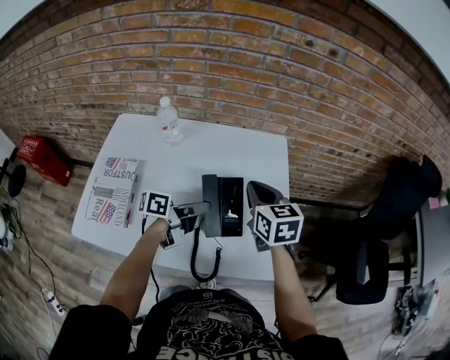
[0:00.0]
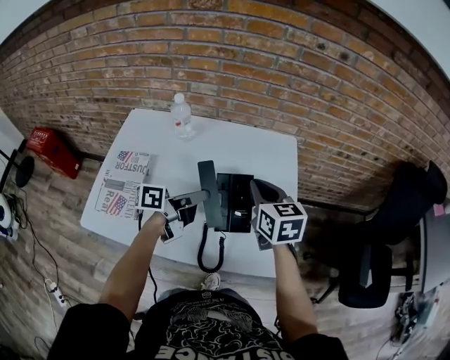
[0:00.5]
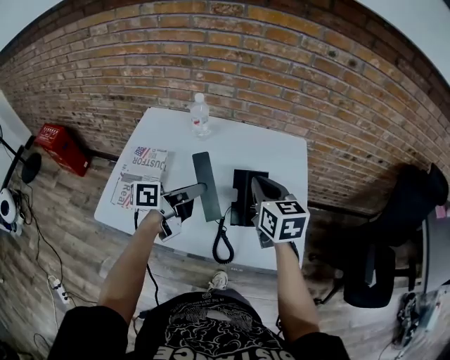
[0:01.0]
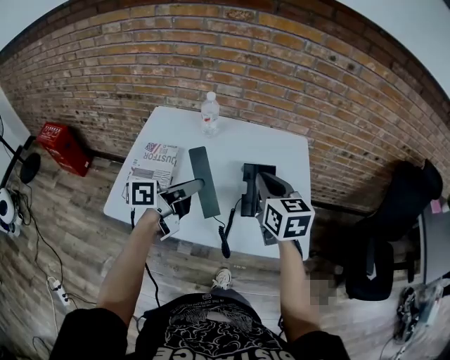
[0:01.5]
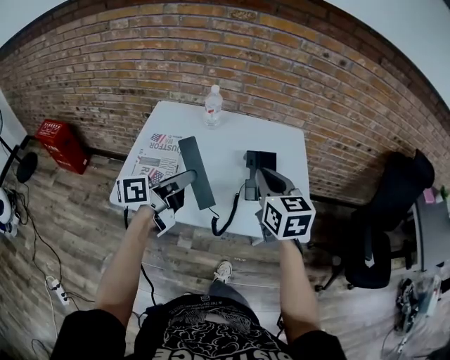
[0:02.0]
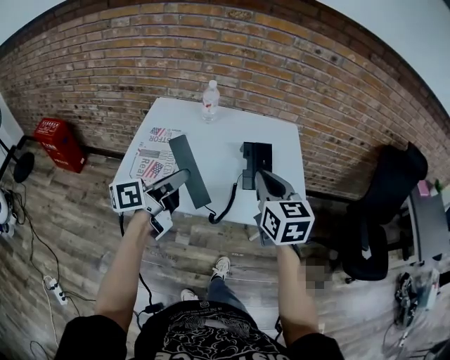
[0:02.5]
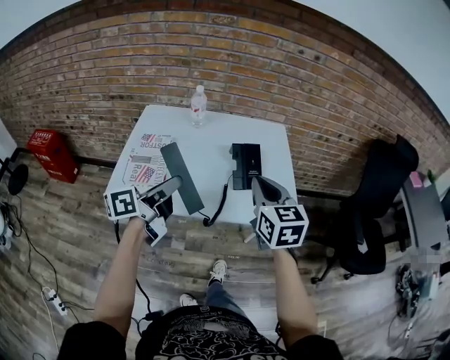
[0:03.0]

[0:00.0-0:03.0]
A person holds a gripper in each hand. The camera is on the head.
0.0 to 1.5 s: The left gripper heads to the left, upward and backward, covering some 20 cm, while the right gripper travels backward, to the left and upward by approximately 15 cm.
1.5 to 3.0 s: Both grippers travel together backward, approximately 15 cm.

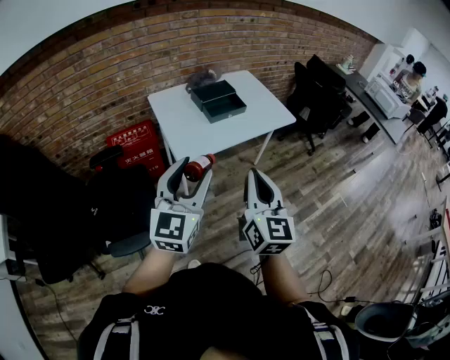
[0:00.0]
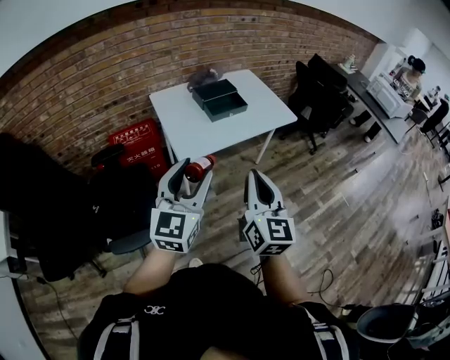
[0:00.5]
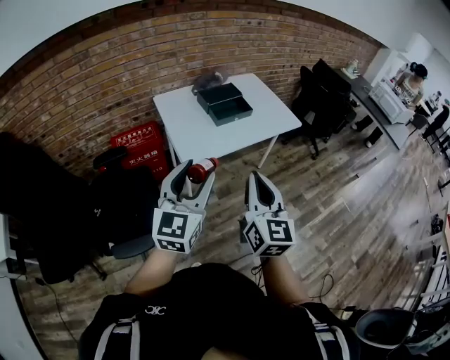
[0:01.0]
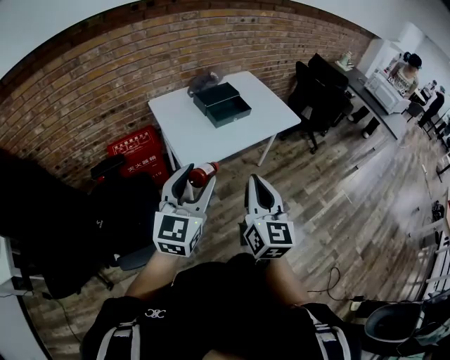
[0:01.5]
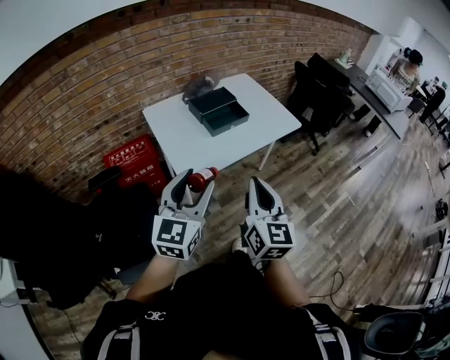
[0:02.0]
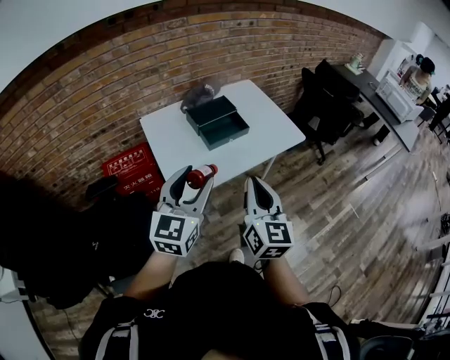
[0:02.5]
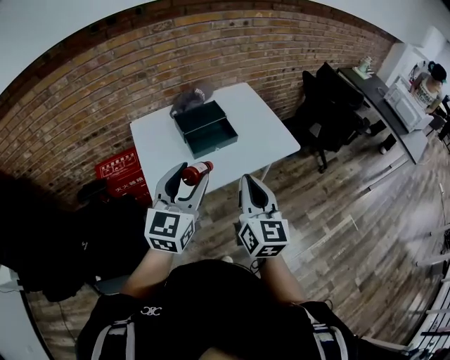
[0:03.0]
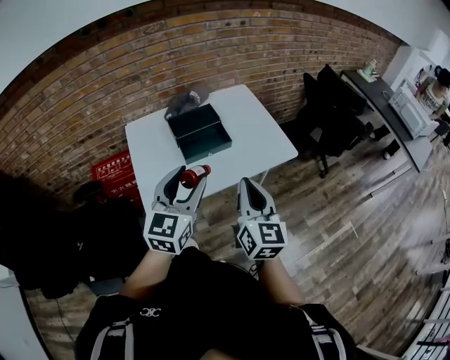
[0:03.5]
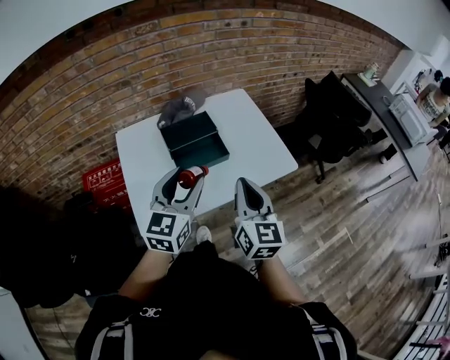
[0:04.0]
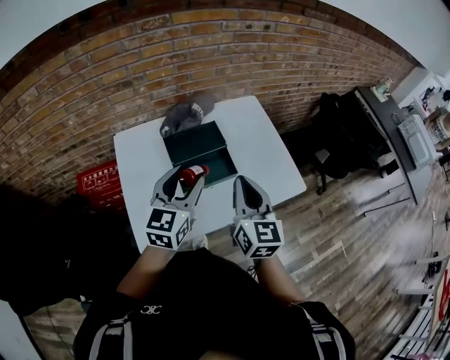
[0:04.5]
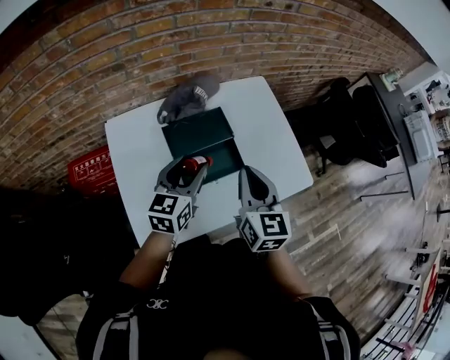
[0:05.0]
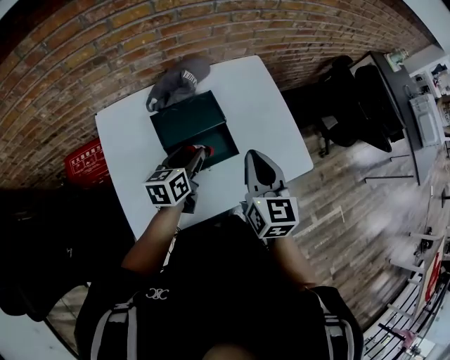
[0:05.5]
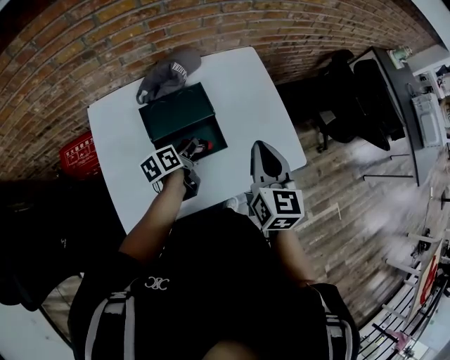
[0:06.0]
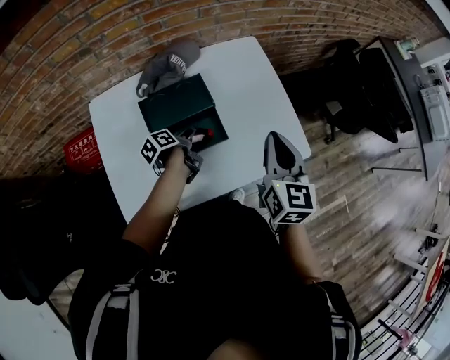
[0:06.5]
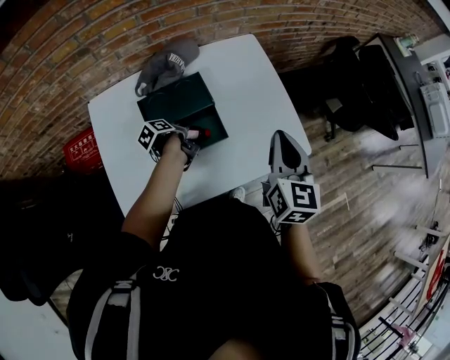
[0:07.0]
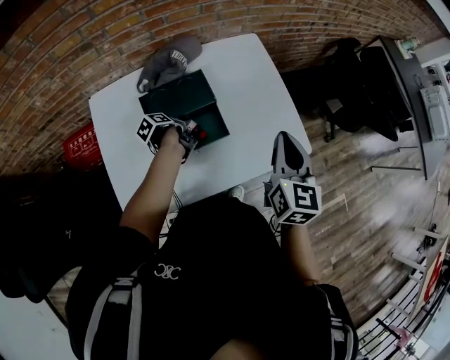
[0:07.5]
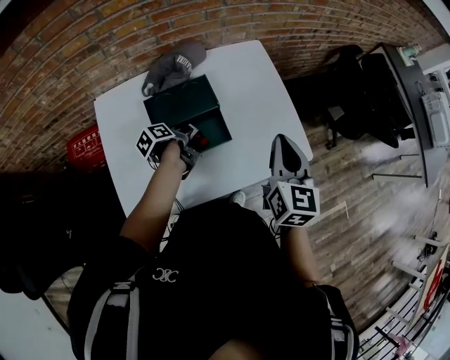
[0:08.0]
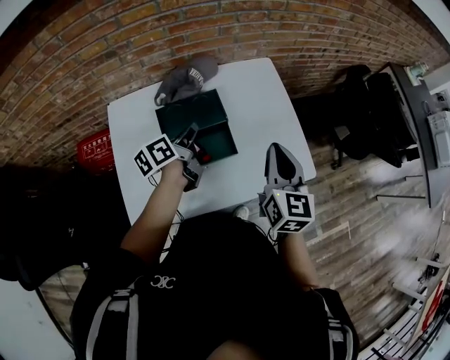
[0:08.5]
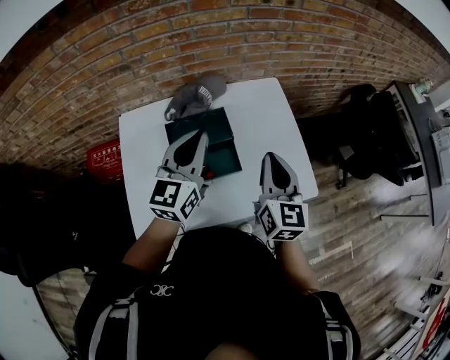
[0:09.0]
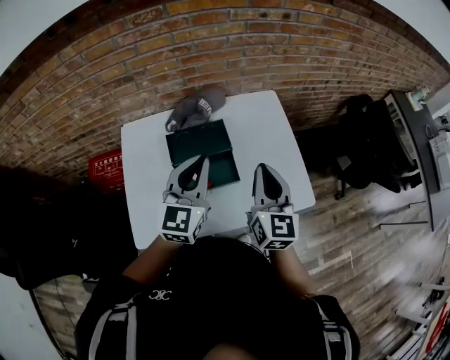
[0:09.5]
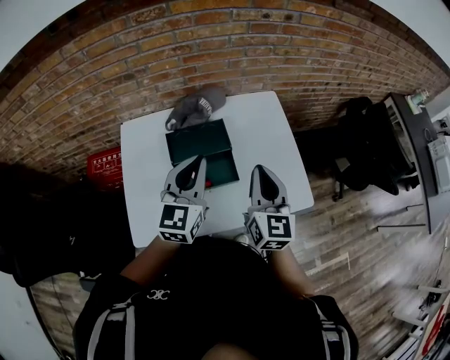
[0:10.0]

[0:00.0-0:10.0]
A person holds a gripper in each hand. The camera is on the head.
0.0 to 2.0 s: The two grippers go roughly 10 cm forward.
2.0 to 4.0 s: Both grippers travel together forward and to the right, roughly 35 cm.
4.0 to 6.0 s: The right gripper is displaced forward by about 20 cm; the left gripper moves downward and forward, about 35 cm, and twists about 60 degrees counterclockwise, seen from behind.
6.0 to 8.0 s: The left gripper changes its angle by roughly 30 degrees, and closes. Meanwhile the right gripper ends up roughly 5 cm from where it was.
8.0 to 10.0 s: The right gripper travels to the left by approximately 5 cm; the left gripper shifts approximately 25 cm upward, twists roughly 80 degrees clockwise, seen from behind, and closes up.

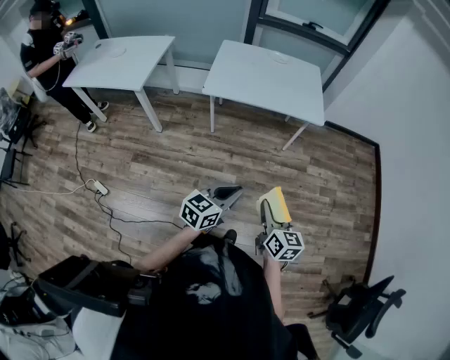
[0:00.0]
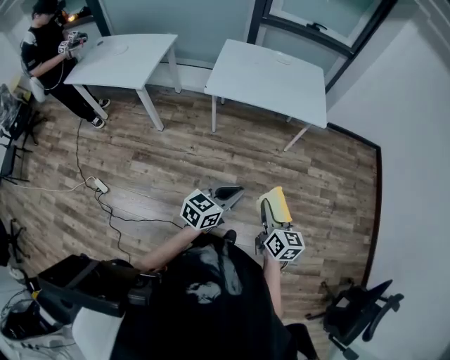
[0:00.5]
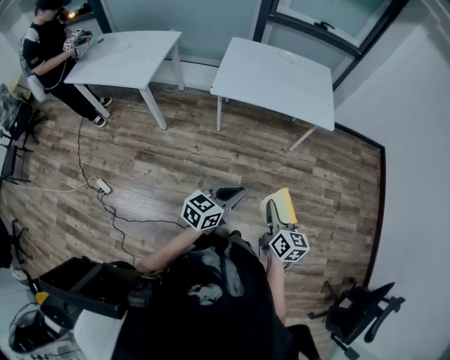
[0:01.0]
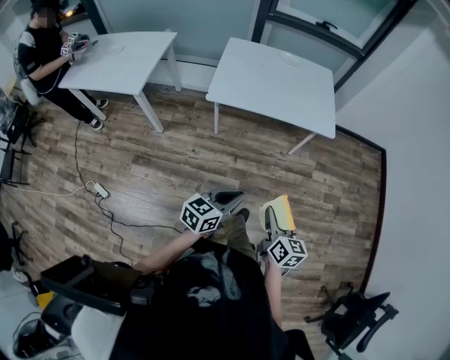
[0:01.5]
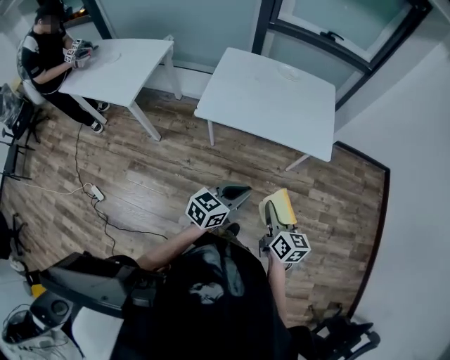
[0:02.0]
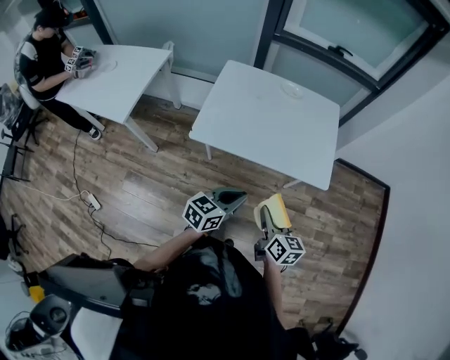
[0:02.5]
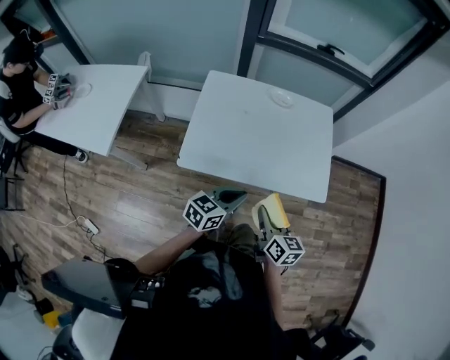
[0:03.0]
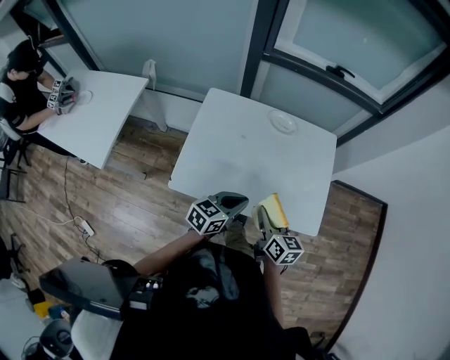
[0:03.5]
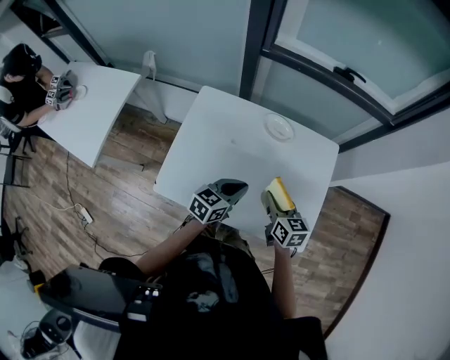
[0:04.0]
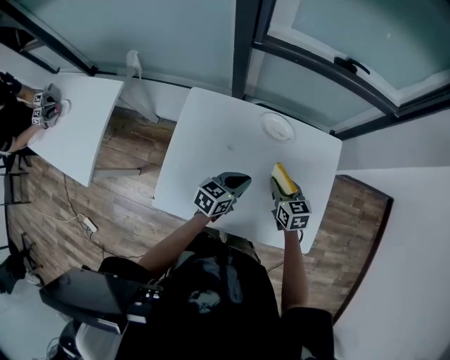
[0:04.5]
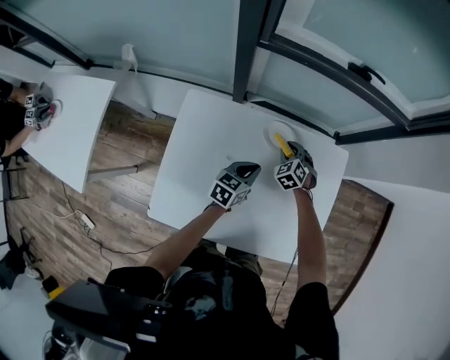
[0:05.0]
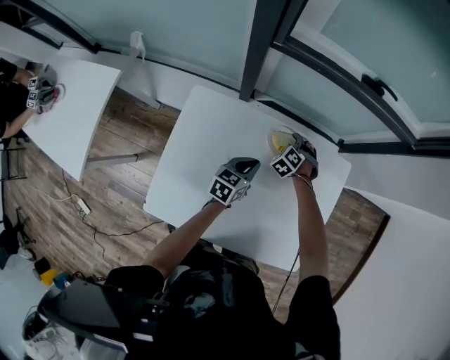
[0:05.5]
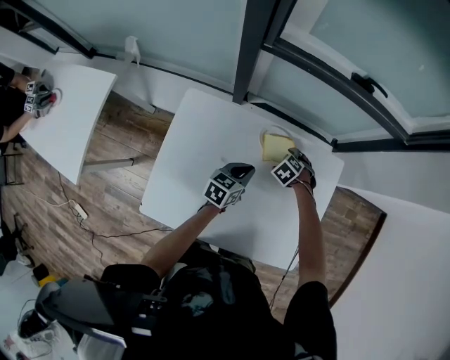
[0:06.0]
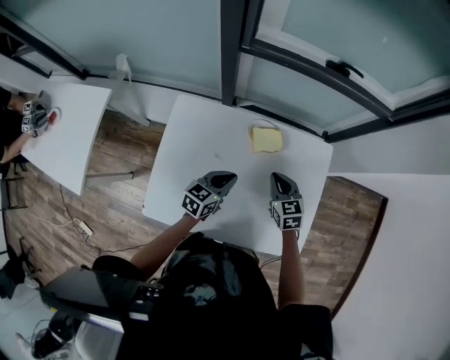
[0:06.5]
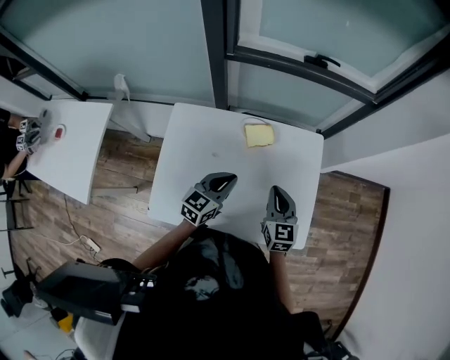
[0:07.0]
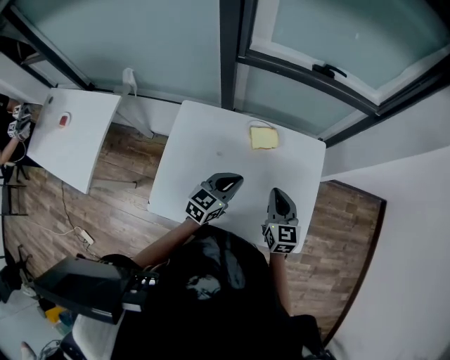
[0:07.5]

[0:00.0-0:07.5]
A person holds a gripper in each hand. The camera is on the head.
0.0 to 2.0 s: The two grippers go some 25 cm forward.
2.0 to 4.0 s: Both grippers are carried forward, roughly 50 cm.
4.0 to 5.5 s: The right gripper travels forward and downward by about 35 cm, and rolls counterclockwise, seen from behind, by roughly 60 degrees; the left gripper is displaced forward and downward by some 25 cm.
5.5 to 7.5 s: The left gripper moves upward, approximately 15 cm, and changes its angle by about 20 degrees; the right gripper shifts by approximately 40 cm, angles its fingers upward, by roughly 40 degrees, and closes.

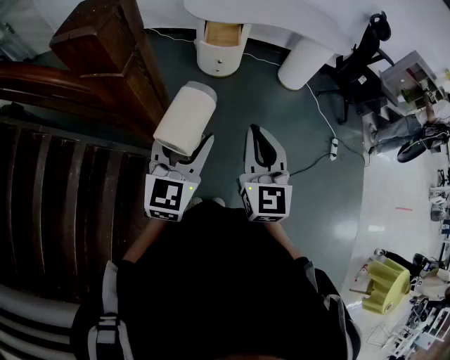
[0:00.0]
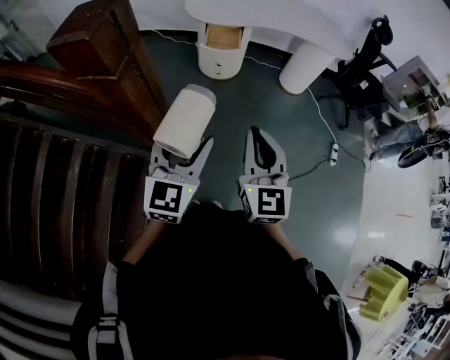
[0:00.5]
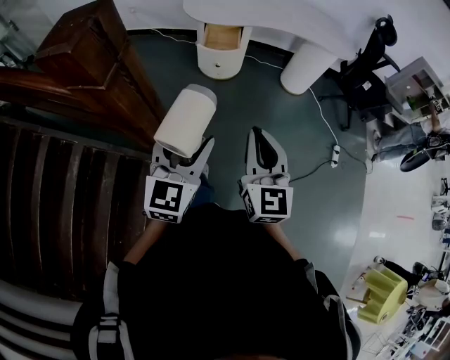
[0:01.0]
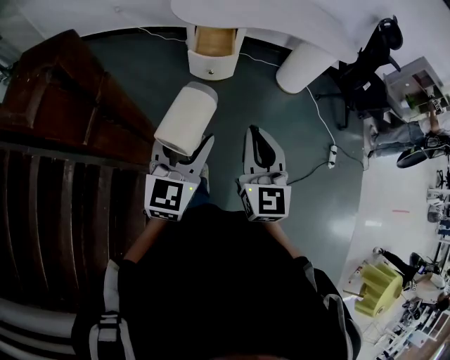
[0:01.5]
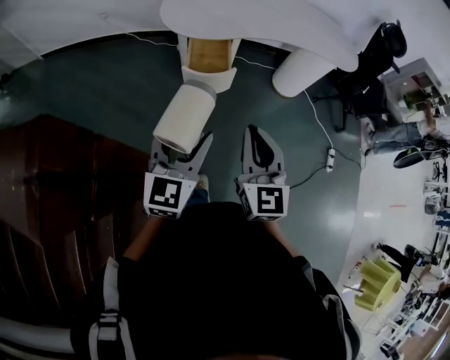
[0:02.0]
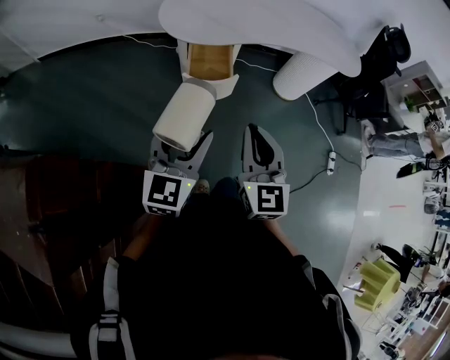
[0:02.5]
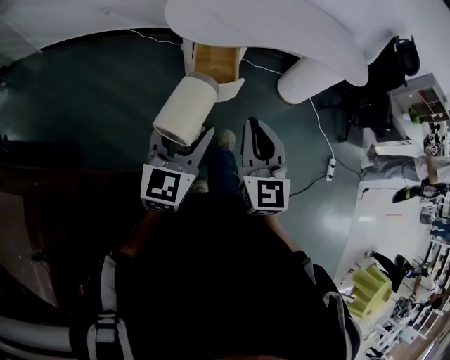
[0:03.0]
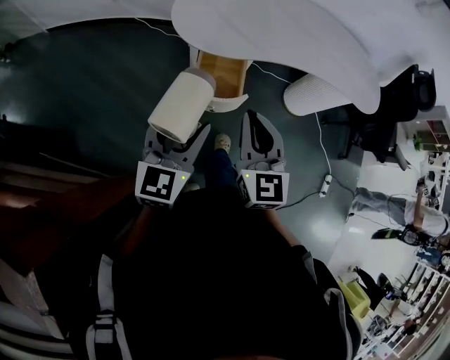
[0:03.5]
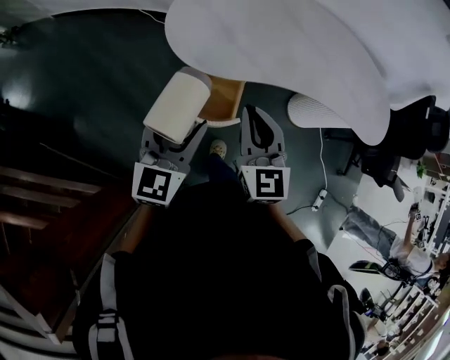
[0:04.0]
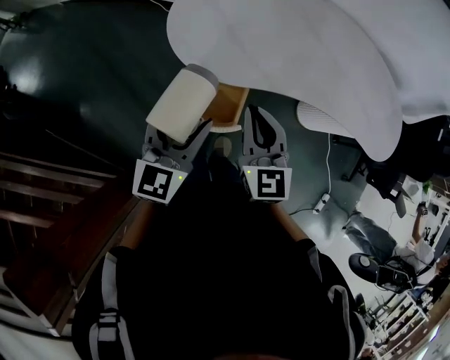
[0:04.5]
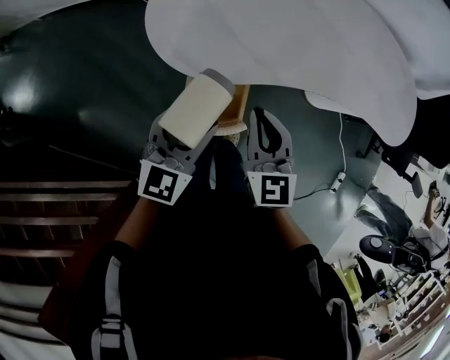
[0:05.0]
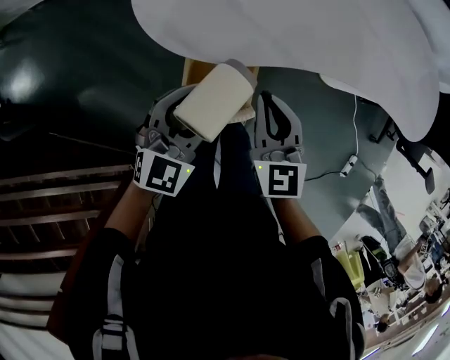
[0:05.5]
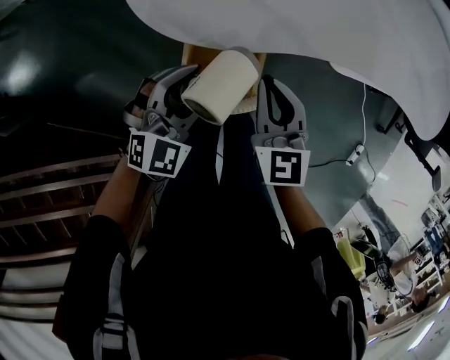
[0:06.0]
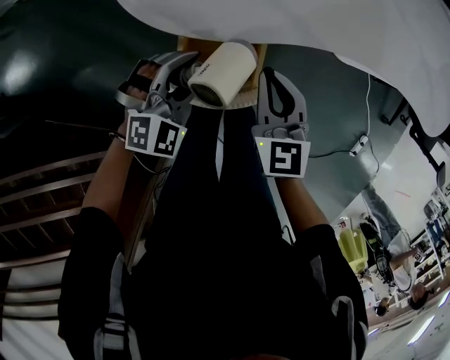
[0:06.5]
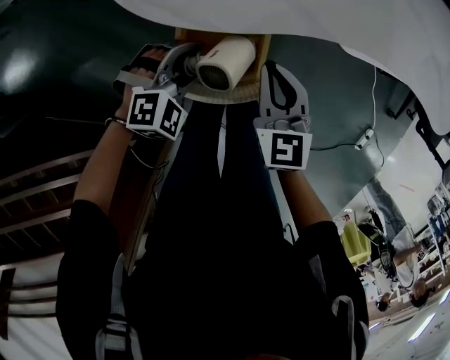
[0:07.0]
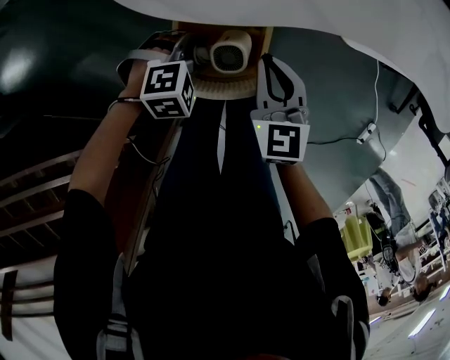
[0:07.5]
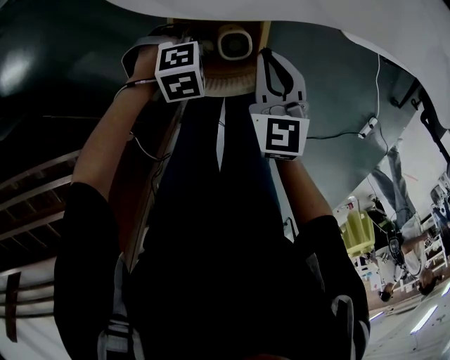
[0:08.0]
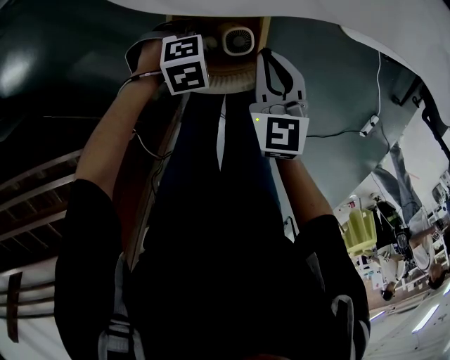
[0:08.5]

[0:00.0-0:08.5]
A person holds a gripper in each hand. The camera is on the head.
0.0 to 2.0 s: The two grippers go roughly 30 cm forward.
2.0 to 4.0 s: Both grippers move forward, some 35 cm.
4.0 to 6.5 s: Both grippers travel together downward and forward, about 25 cm. The left gripper twists about 50 degrees clockwise, seen from behind.
6.5 to 8.5 s: The right gripper travels downward by about 5 cm. The left gripper goes some 15 cm downward, and angles its fingers downward, by roughly 40 degrees.
